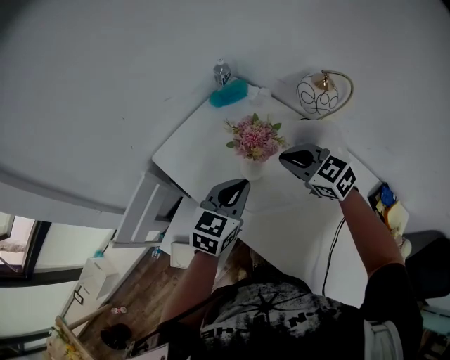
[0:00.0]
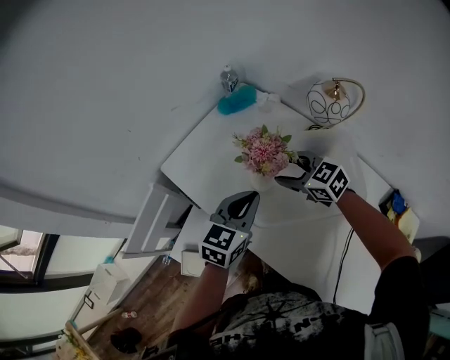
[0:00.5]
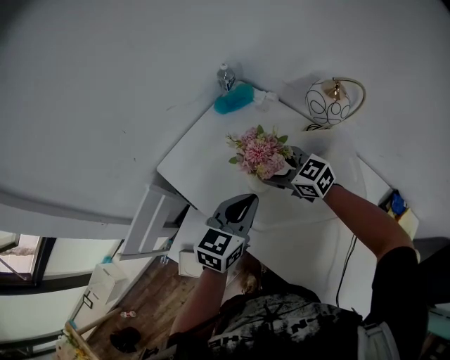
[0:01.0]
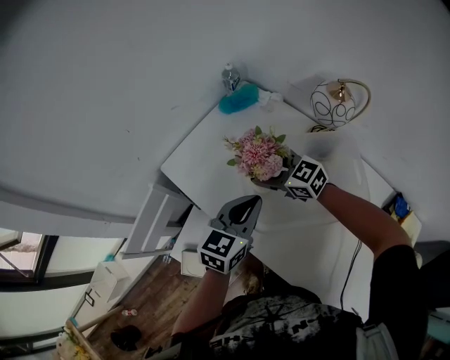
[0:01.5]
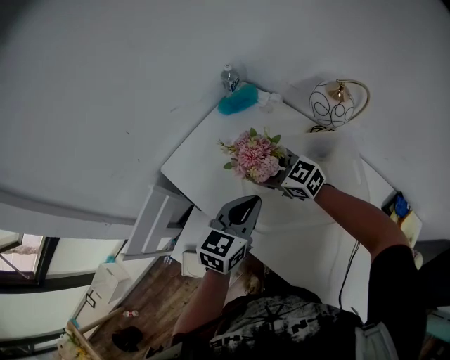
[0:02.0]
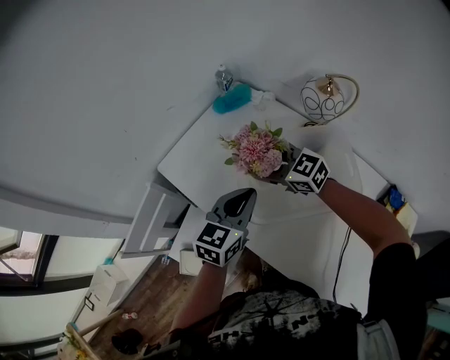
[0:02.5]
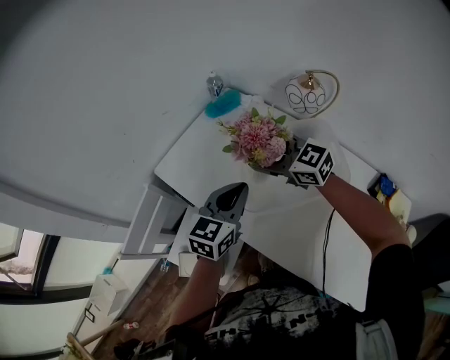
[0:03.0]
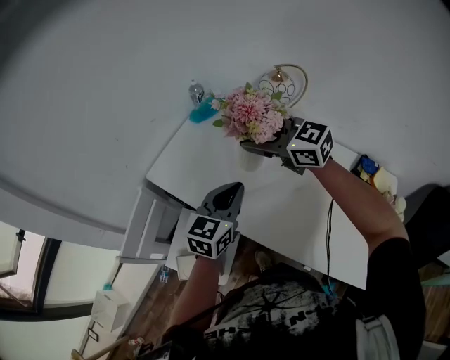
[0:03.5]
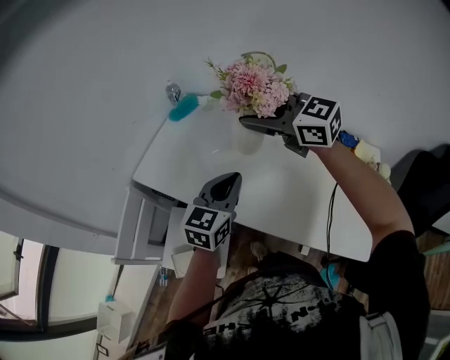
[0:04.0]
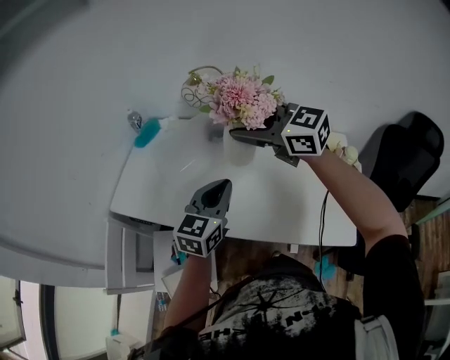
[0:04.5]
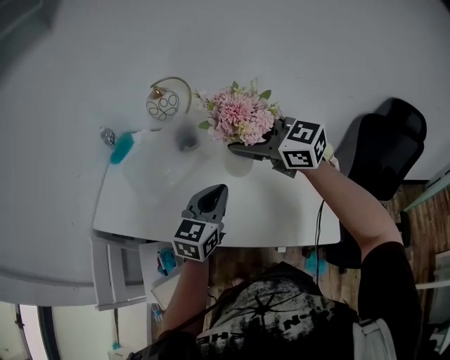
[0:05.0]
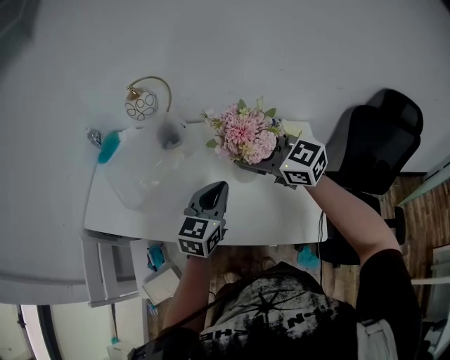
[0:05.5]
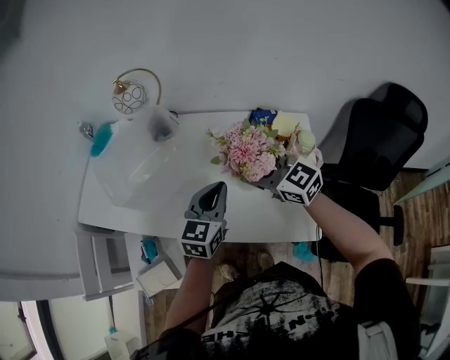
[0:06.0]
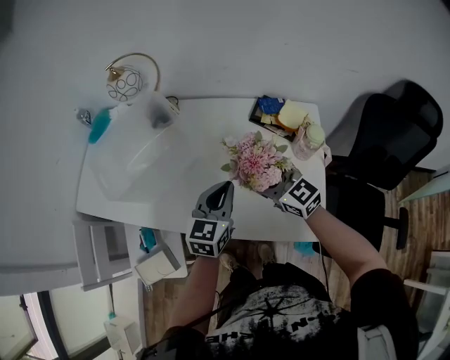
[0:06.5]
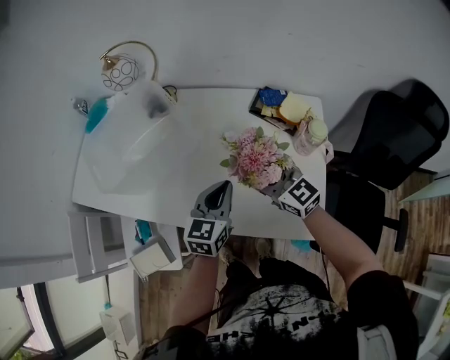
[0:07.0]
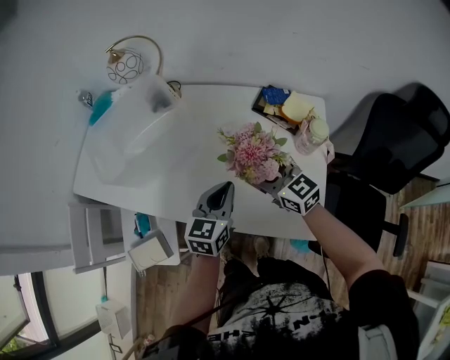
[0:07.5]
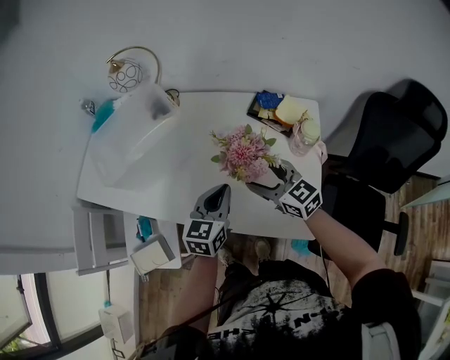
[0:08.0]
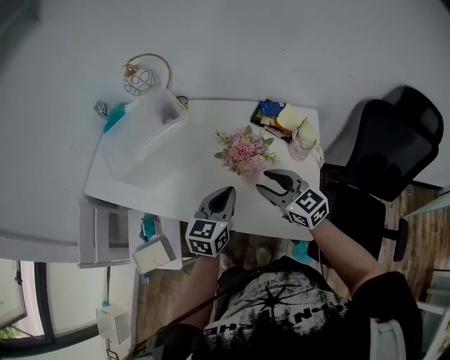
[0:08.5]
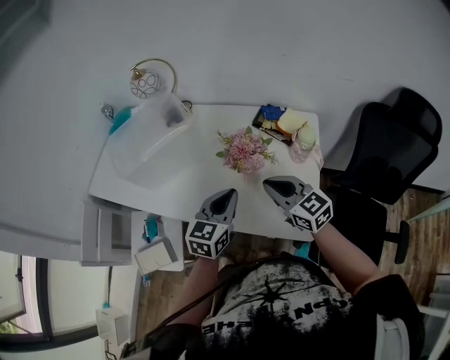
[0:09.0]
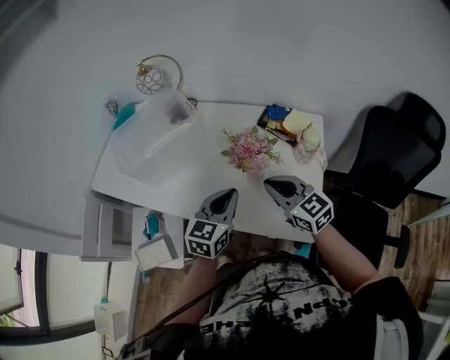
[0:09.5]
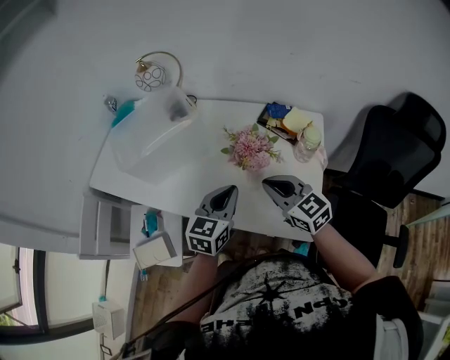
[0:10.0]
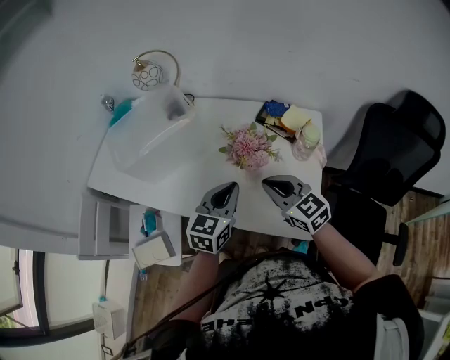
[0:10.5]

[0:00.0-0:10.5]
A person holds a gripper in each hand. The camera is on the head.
0.0 to 2.0 s: The right gripper shifts approximately 15 cm to the left, forward and downward, and opens.
2.0 to 4.0 s: The left gripper shifts about 15 cm backward and upward. Meanwhile the right gripper goes approximately 35 cm upward and backward, and rotates some 30 degrees.
4.0 to 6.5 s: Both grippers travel together to the right and downward, roughly 35 cm. The right gripper turns by some 30 degrees.
6.5 to 8.5 s: Both grippers move backward, about 5 cm. The right gripper closes.
8.5 to 10.5 s: The right gripper closes up.

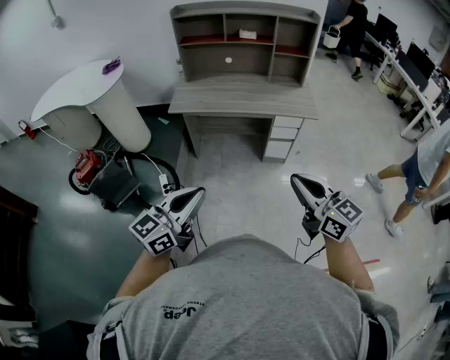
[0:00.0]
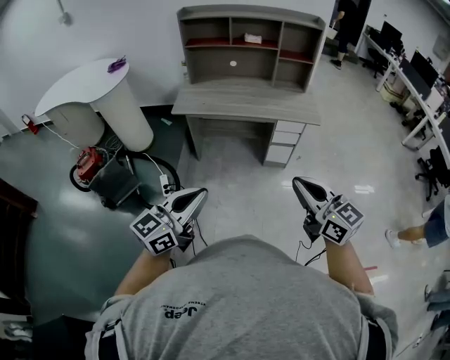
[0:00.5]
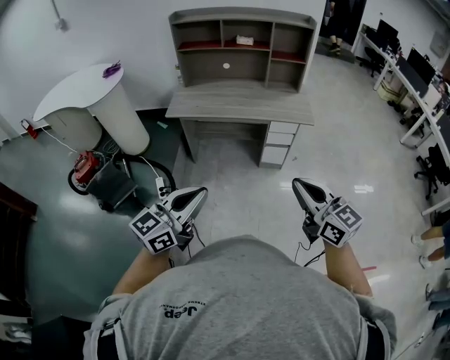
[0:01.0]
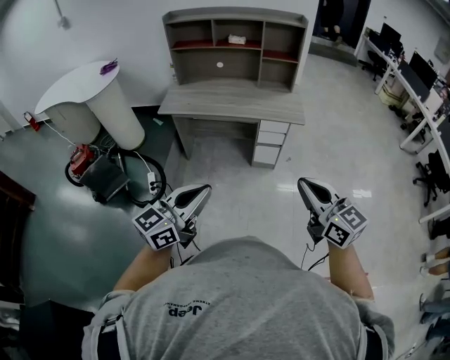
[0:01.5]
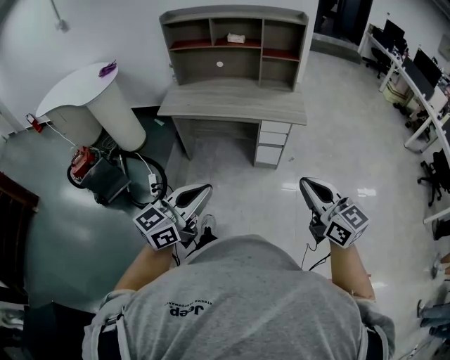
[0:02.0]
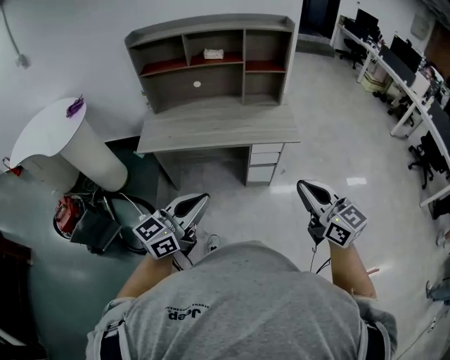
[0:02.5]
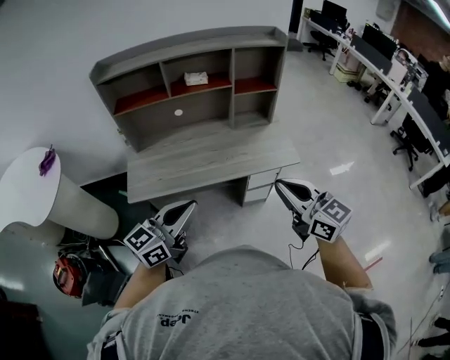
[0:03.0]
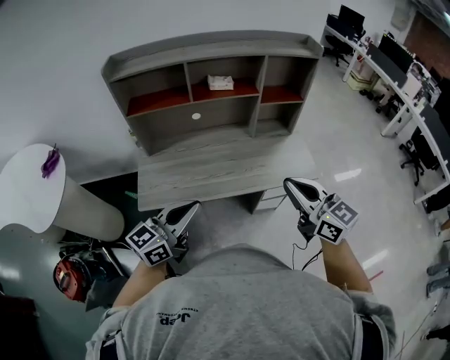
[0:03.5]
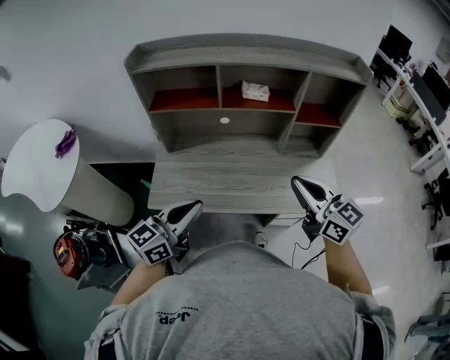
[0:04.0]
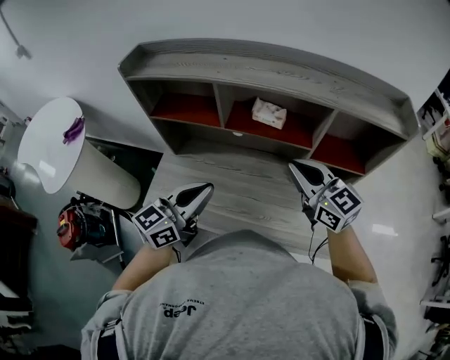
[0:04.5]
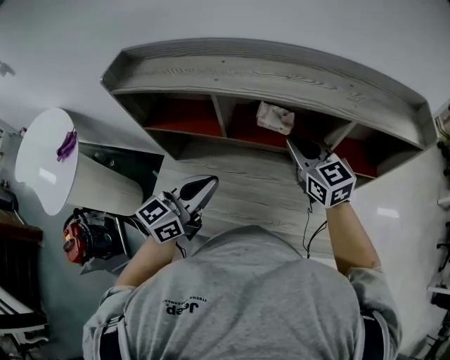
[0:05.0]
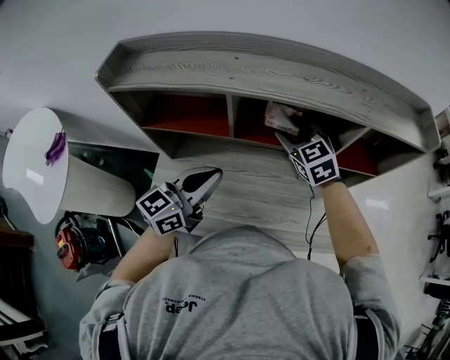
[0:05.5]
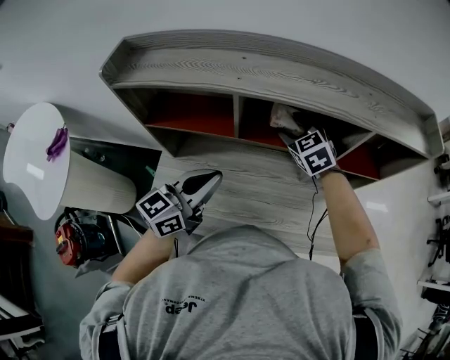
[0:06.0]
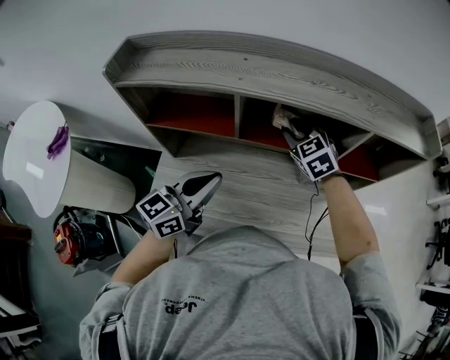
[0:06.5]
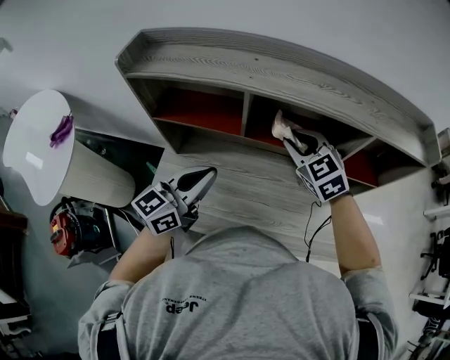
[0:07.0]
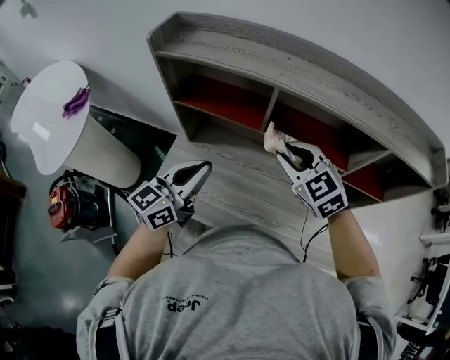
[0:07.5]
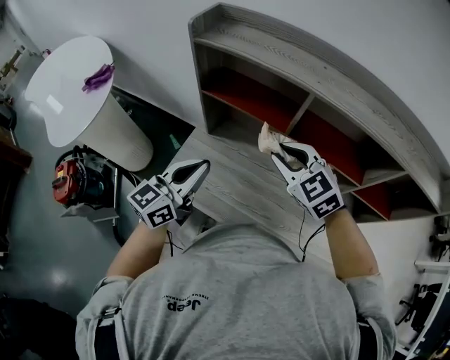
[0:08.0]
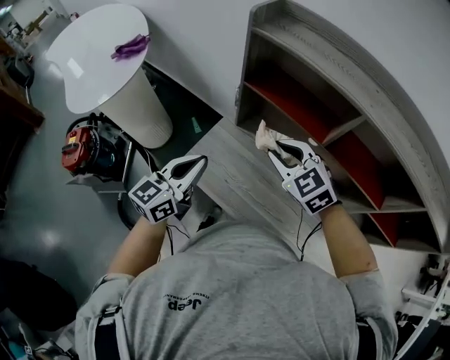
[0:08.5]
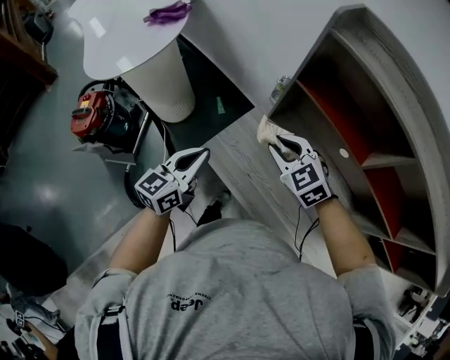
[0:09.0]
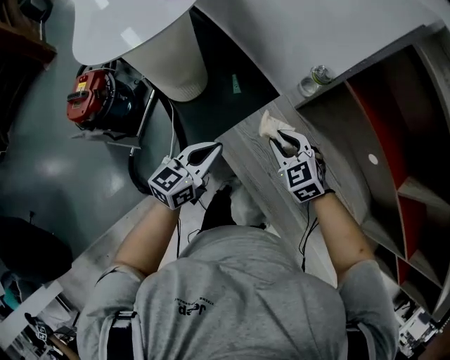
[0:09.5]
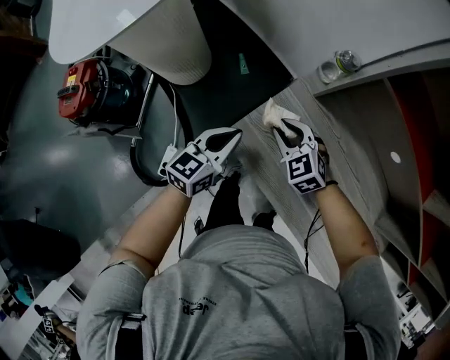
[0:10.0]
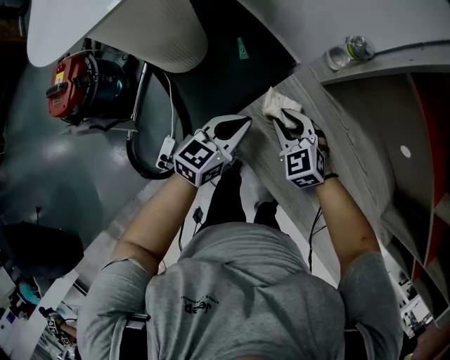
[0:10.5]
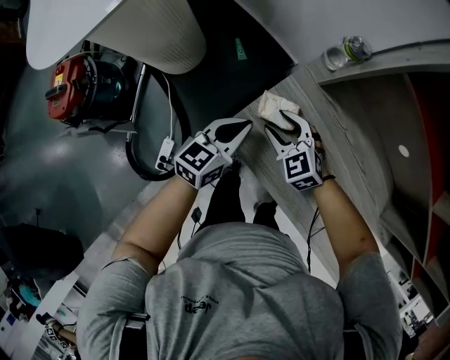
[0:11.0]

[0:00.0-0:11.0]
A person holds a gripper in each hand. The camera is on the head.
0.0 to 2.0 s: Both grippers move to the right, some 15 cm.
2.0 to 3.5 s: The two grippers travel together, forward and to the left, roughly 50 cm.
3.5 to 5.5 s: The two grippers go roughly 40 cm forward. The right gripper turns by approximately 40 degrees, and opens up.
5.5 to 7.5 s: The left gripper moves to the left, roughly 10 cm. Meanwhile the right gripper shifts roughly 15 cm backward and to the left, rotates roughly 20 degrees, and closes up.
7.5 to 9.0 s: The right gripper shifts by about 30 cm, and rotates some 30 degrees. Meanwhile the left gripper ends up approximately 30 cm from where it was, and swivels some 30 degrees.
9.0 to 11.0 s: The left gripper heads downward and forward, covering approximately 20 cm; the right gripper is displaced downward by about 25 cm, and opens its fingers.

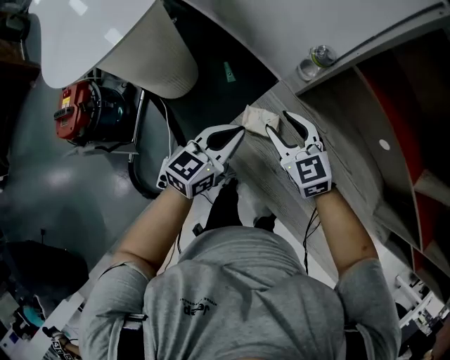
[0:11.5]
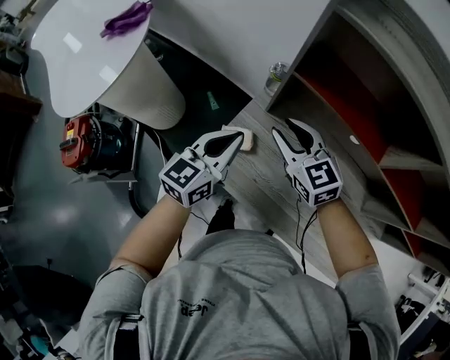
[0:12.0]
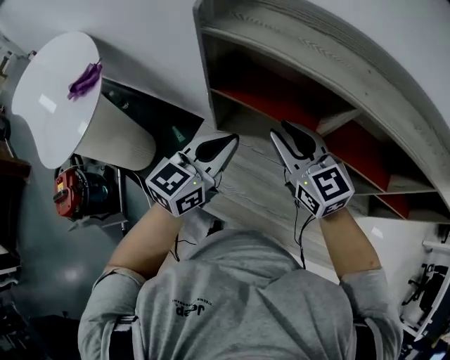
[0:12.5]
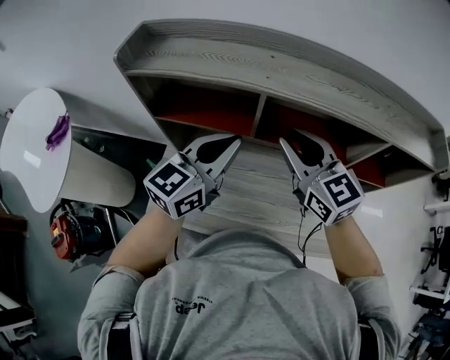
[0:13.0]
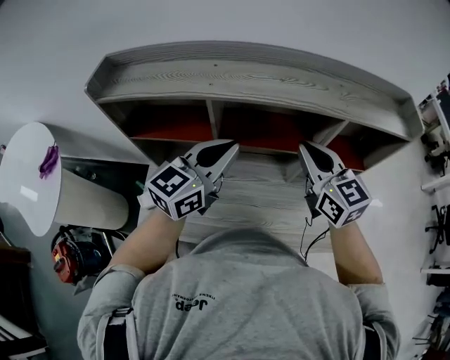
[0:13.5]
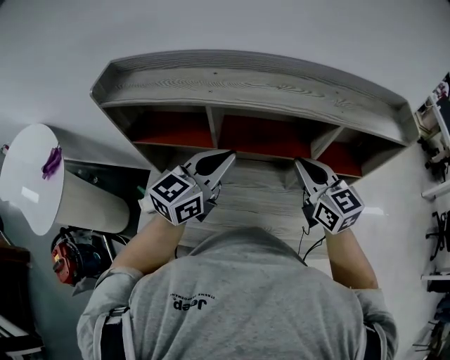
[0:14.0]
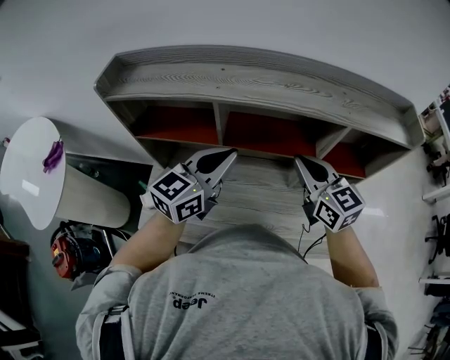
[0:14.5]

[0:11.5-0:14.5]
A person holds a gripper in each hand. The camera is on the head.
11.5 to 13.0 s: The left gripper shifts by roughly 40 cm, and swivels roughly 40 degrees. Meanwhile the right gripper changes place by roughly 50 cm, changes its angle by some 40 degrees, and closes its fingers.
13.0 to 14.5 s: The right gripper is displaced to the right by about 15 cm. The left gripper shifts some 10 cm to the right.

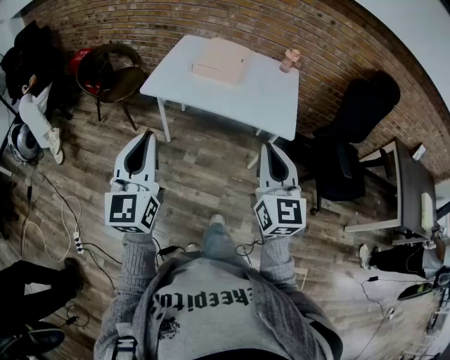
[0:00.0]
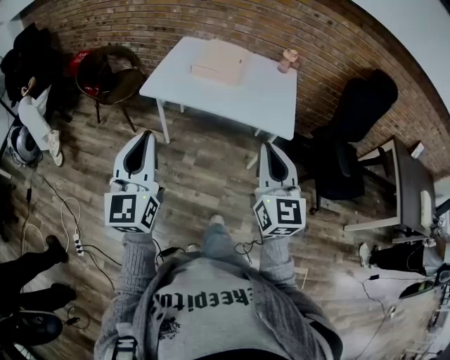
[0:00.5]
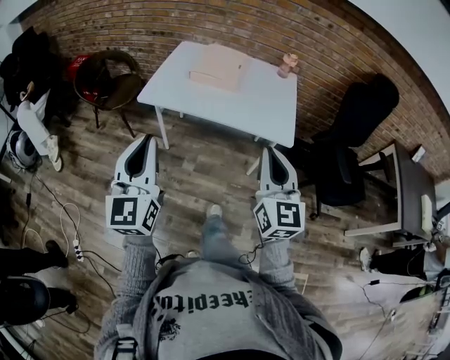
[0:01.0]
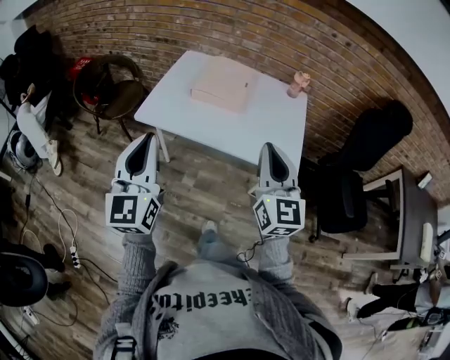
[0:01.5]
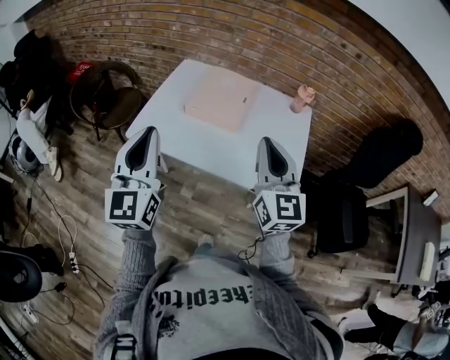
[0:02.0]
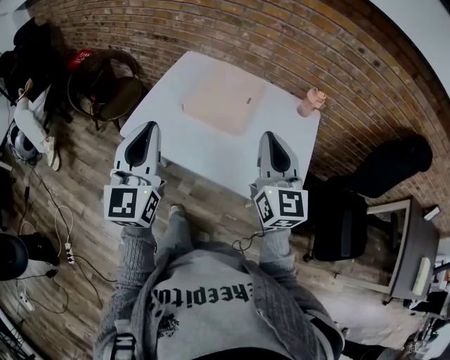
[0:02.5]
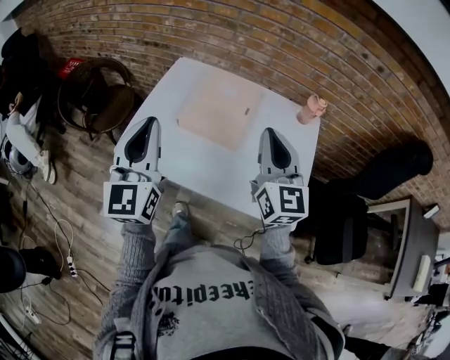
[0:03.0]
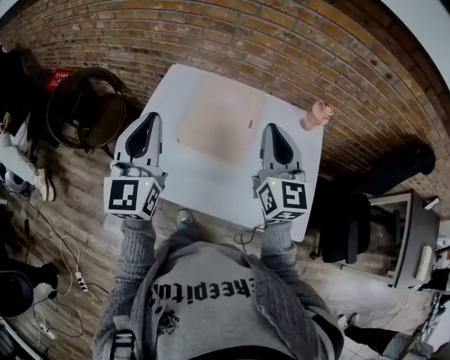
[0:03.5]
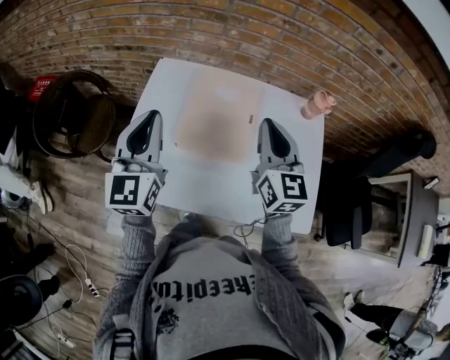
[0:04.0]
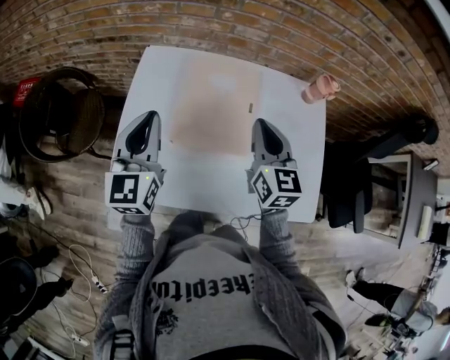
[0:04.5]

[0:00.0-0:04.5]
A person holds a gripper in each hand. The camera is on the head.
0.0 to 2.0 s: The two grippers go about 30 cm forward.
2.0 to 4.5 s: The right gripper moves forward and downward, some 35 cm, and rotates about 20 degrees. Meanwhile the left gripper travels forward by approximately 35 cm, and changes its angle by roughly 20 degrees.
